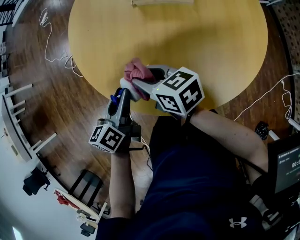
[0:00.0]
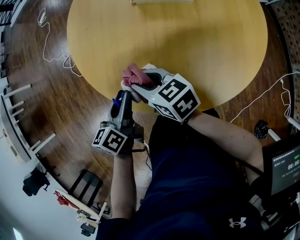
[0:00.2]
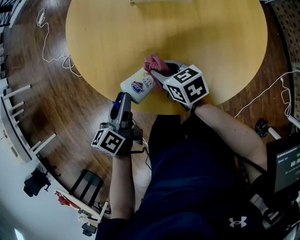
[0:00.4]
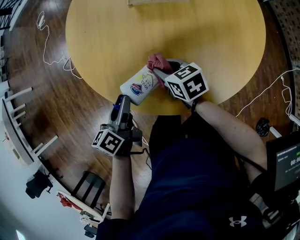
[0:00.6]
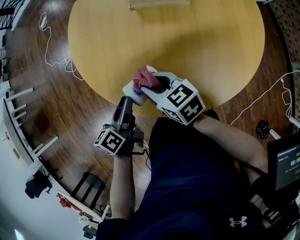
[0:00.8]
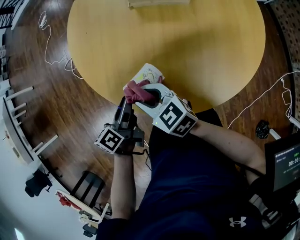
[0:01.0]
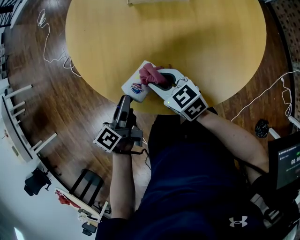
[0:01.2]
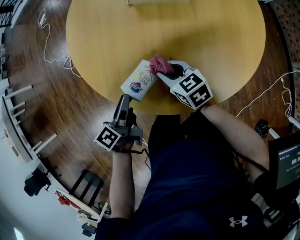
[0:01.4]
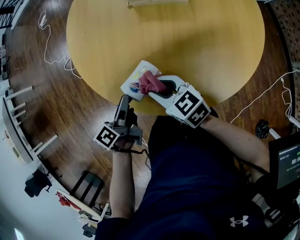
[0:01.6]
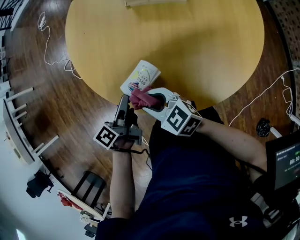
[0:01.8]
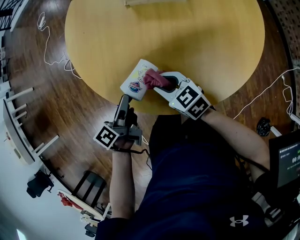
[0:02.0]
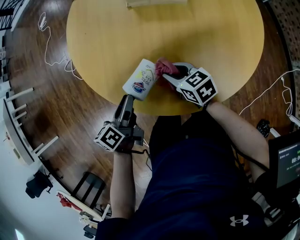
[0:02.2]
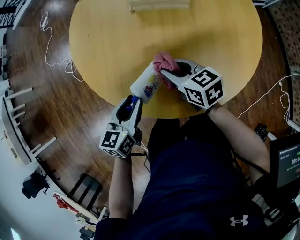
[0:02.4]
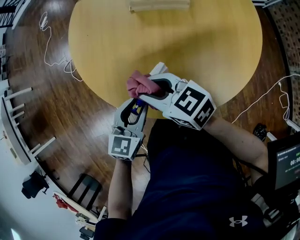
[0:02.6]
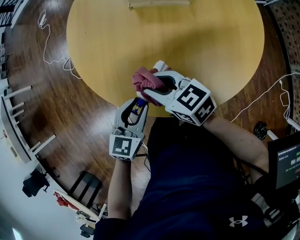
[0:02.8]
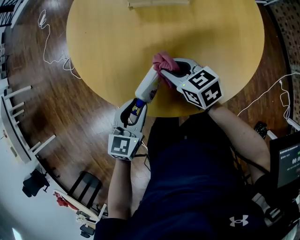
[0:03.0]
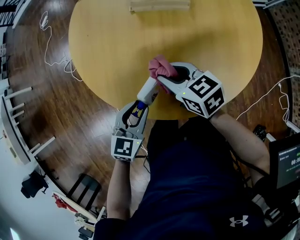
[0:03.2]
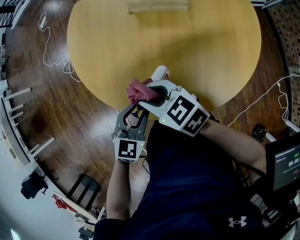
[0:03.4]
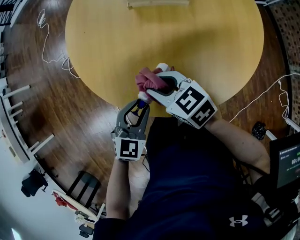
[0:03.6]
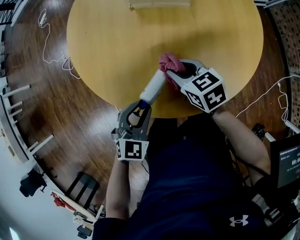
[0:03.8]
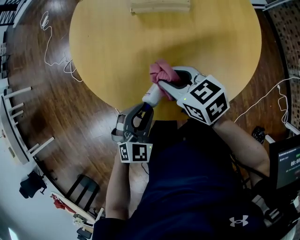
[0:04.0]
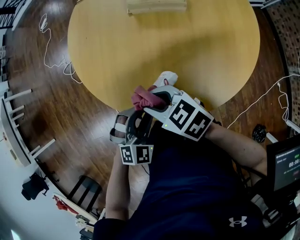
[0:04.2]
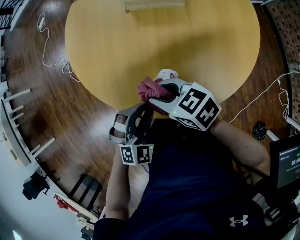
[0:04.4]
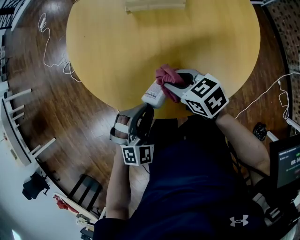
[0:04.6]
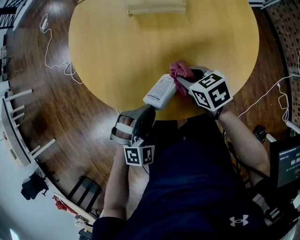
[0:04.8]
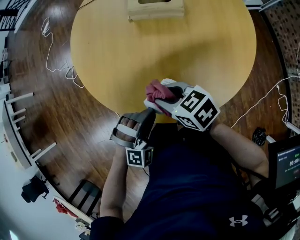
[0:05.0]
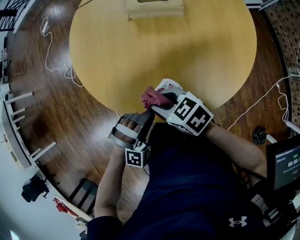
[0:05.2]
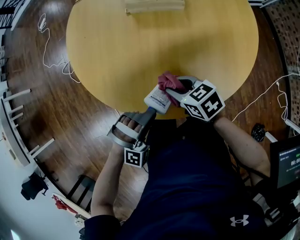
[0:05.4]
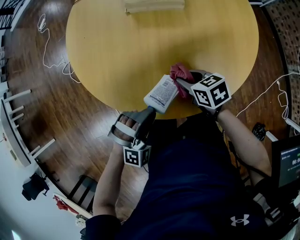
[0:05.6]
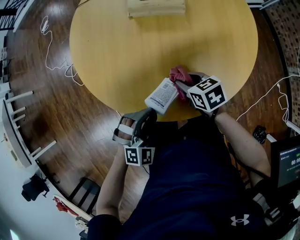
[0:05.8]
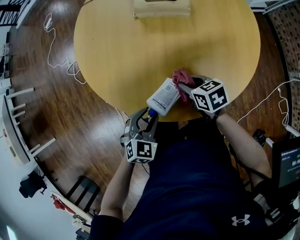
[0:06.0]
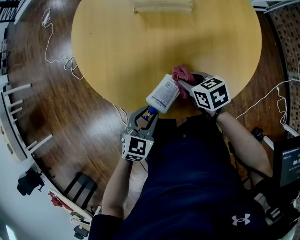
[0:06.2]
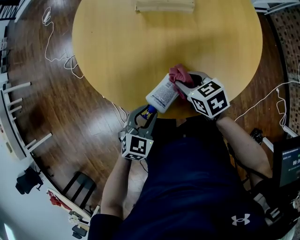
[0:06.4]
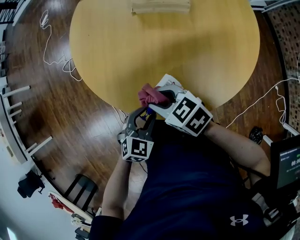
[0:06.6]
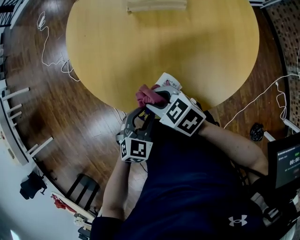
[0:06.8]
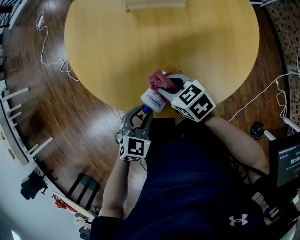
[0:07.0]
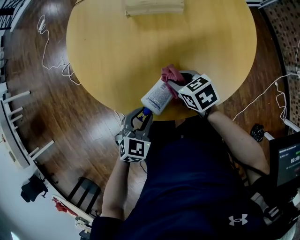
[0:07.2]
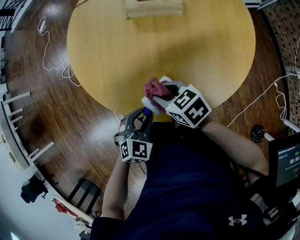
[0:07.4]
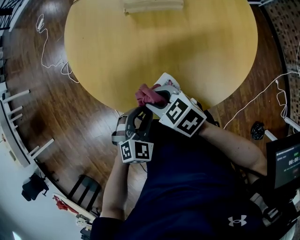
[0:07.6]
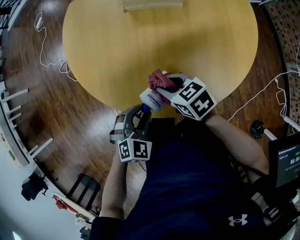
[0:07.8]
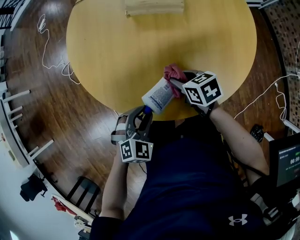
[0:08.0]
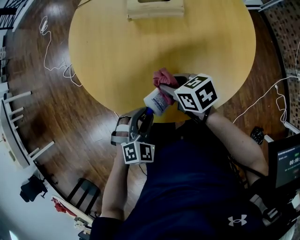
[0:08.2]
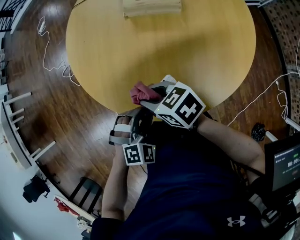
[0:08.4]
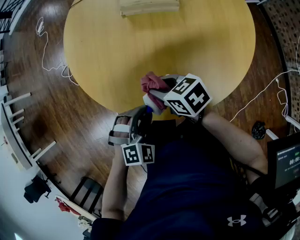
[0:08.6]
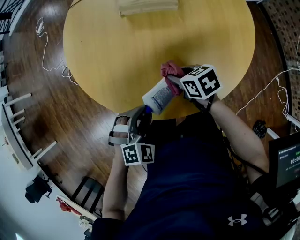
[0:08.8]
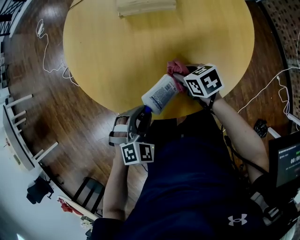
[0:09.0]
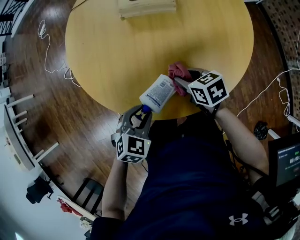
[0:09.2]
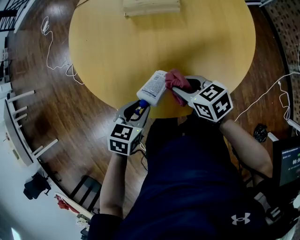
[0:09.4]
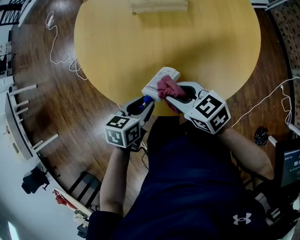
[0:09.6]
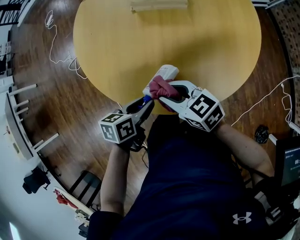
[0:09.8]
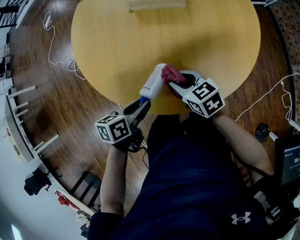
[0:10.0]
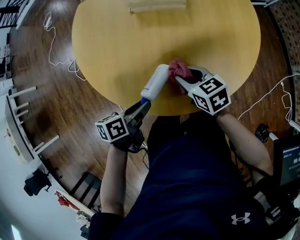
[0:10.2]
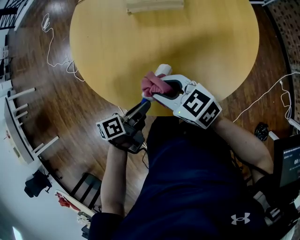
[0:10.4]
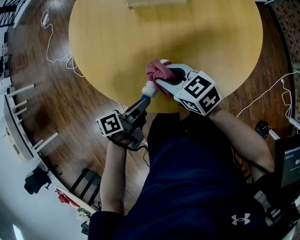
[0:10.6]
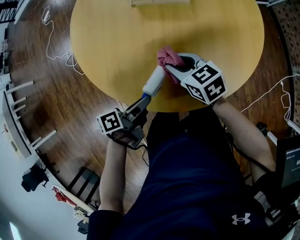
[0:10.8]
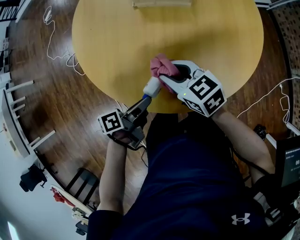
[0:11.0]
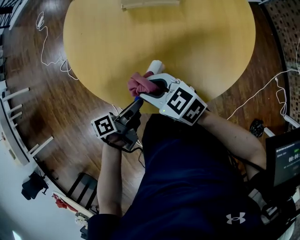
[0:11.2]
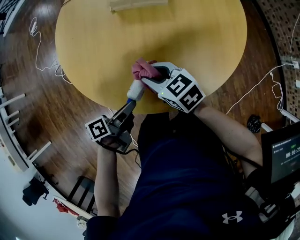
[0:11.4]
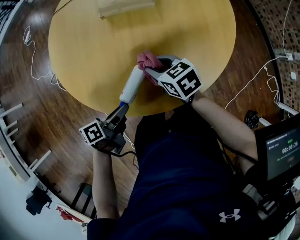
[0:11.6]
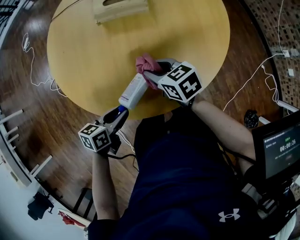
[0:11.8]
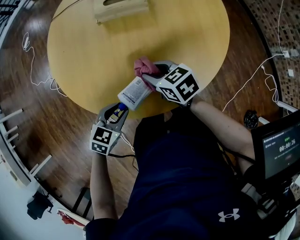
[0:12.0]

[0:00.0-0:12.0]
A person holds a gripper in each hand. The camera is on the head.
0:00.0 to 0:01.6: The left gripper moves about 5 cm, and rotates approximately 30 degrees; the right gripper swings left and right, approximately 10 cm each way, with 3 reversals.
0:01.6 to 0:03.0: The right gripper goes up and down, about 15 cm each way, reversing 2 times; the left gripper is displaced to the right by roughly 5 cm, and rolls clockwise, seen from behind, by roughly 70 degrees.
0:03.0 to 0:04.4: The left gripper rotates around the line of its fingers by roughly 50 degrees, clockwise from behind; the right gripper swings left and right, about 10 cm each way, with 2 reversals.
0:04.4 to 0:06.0: The left gripper swivels about 20 degrees. The right gripper moves left and right over roughly 10 cm, changing direction 2 times, and rotates roughly 20 degrees.
0:06.0 to 0:07.6: The right gripper moves left and right over some 15 cm, changing direction 2 times, and rotates roughly 20 degrees.
0:07.6 to 0:09.0: The right gripper goes left and right, about 15 cm each way, reversing 2 times, and turns by some 30 degrees.
0:09.0 to 0:10.4: The right gripper swings up and down, approximately 10 cm each way, with 2 reversals, and swivels approximately 30 degrees; the left gripper twists approximately 100 degrees counterclockwise, seen from behind.
0:10.4 to 0:12.0: The left gripper rolls clockwise, seen from behind, by about 70 degrees. Meanwhile the right gripper moves left and right over approximately 10 cm, changing direction 2 times.

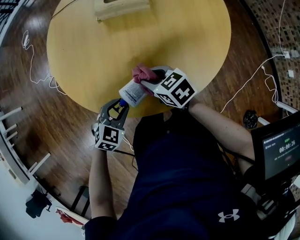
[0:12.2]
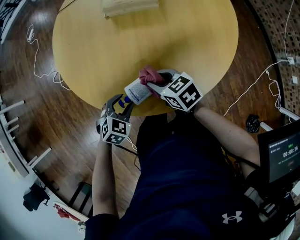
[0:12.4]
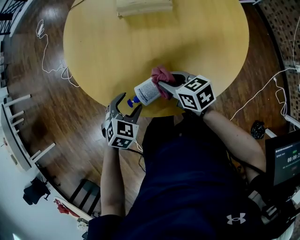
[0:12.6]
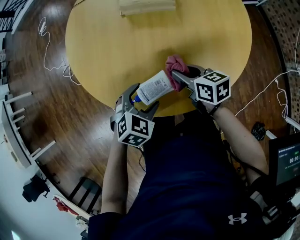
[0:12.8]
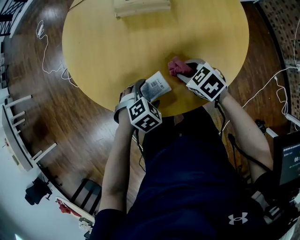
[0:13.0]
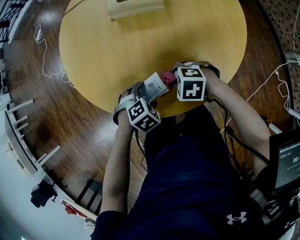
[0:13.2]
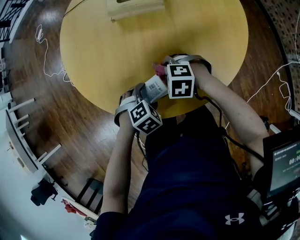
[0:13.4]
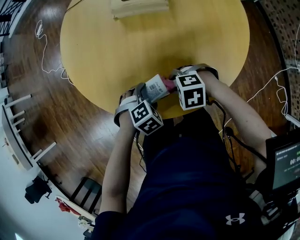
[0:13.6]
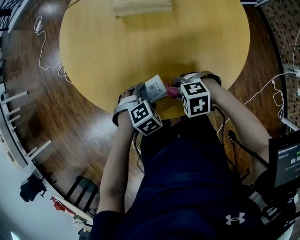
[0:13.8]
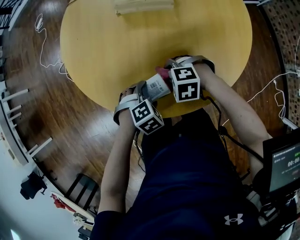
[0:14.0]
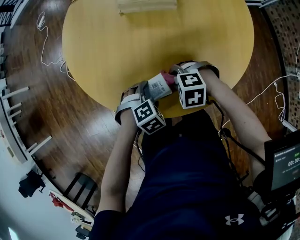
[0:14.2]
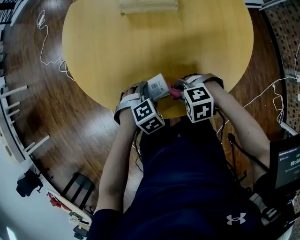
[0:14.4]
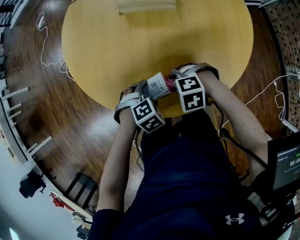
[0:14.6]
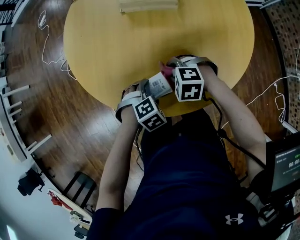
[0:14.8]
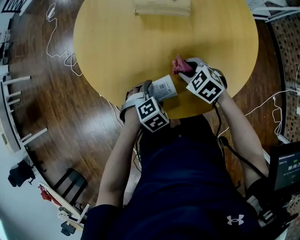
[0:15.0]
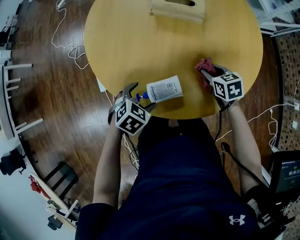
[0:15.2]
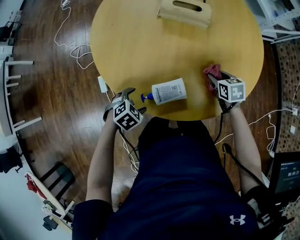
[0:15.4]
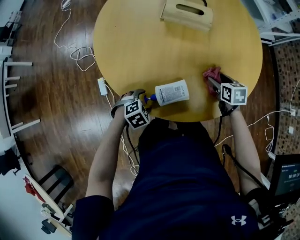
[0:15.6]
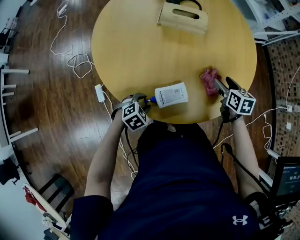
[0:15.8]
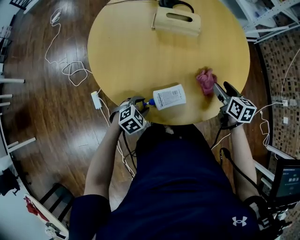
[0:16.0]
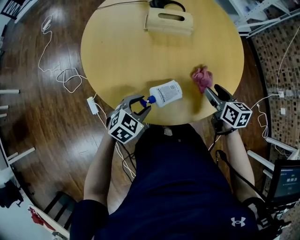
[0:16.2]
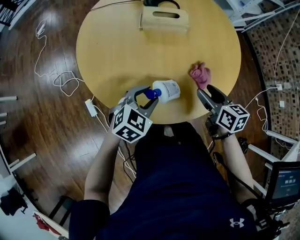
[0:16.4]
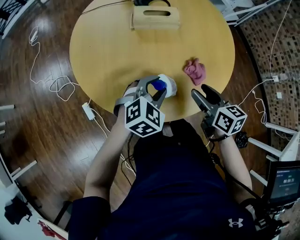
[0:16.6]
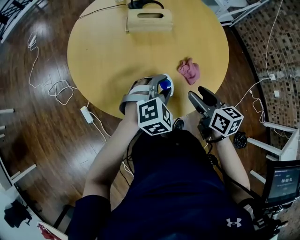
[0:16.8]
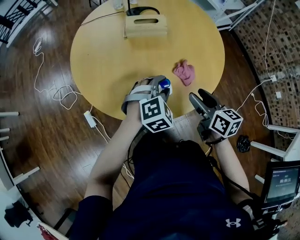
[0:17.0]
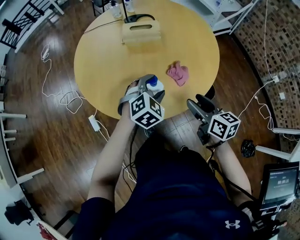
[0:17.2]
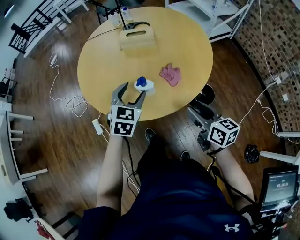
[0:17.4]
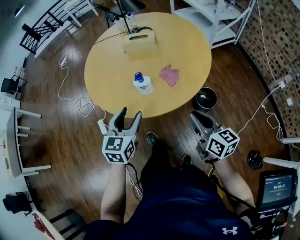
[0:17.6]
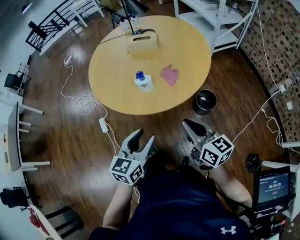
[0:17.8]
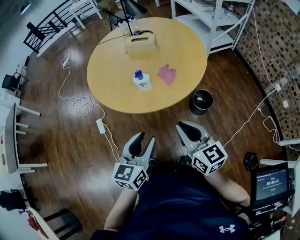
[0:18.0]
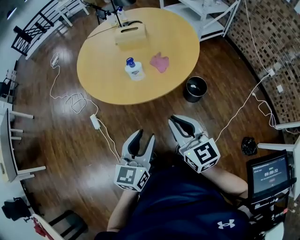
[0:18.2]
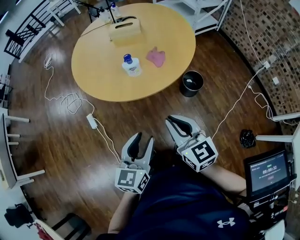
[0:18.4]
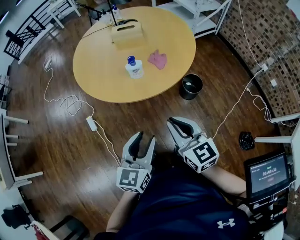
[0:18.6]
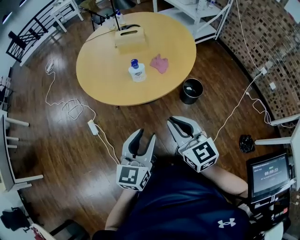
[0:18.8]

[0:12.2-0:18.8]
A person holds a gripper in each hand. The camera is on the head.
0:12.2 to 0:13.8: The left gripper ends up some 10 cm from where it was, rotates approximately 30 degrees, and opens its fingers. Meanwhile the right gripper ends up approximately 10 cm from where it was, and rotates around the line of its fingers by some 60 degrees, counterclockwise from behind.
0:13.8 to 0:15.4: The left gripper shifts by about 10 cm; the right gripper moves approximately 20 cm, and rolls clockwise, seen from behind, by about 60 degrees.
0:15.4 to 0:17.2: The left gripper goes some 25 cm to the right, upward and forward, and swivels roughly 40 degrees, while the right gripper is displaced upward and backward by roughly 25 cm, and tips its fingers upward by roughly 30 degrees.
0:17.2 to 0:18.8: The left gripper heads backward, covering about 30 cm, and tips its fingers upward by roughly 30 degrees. The right gripper heads backward and upward, covering about 25 cm, rotates approximately 30 degrees, and closes its fingers.

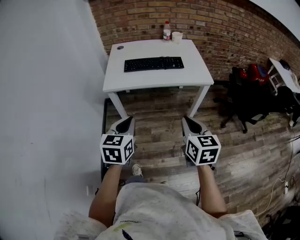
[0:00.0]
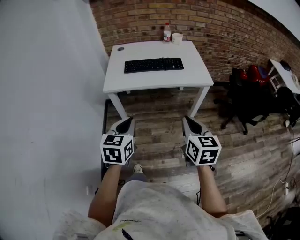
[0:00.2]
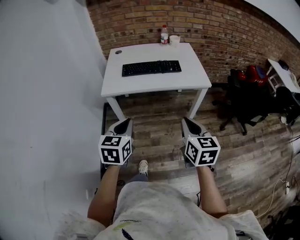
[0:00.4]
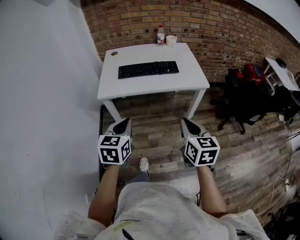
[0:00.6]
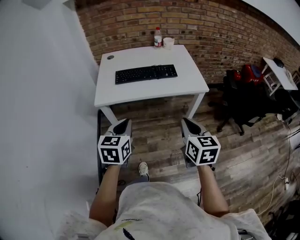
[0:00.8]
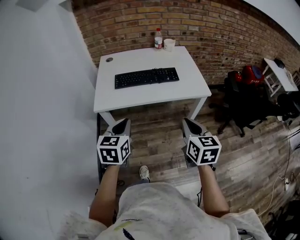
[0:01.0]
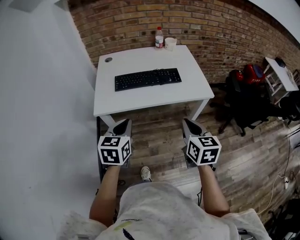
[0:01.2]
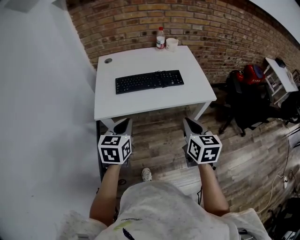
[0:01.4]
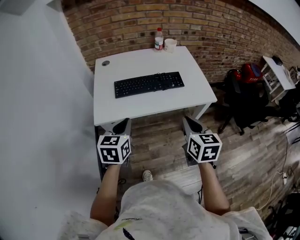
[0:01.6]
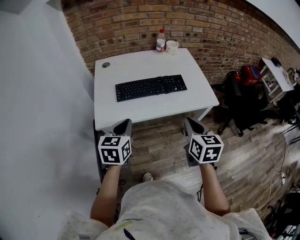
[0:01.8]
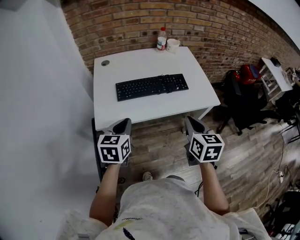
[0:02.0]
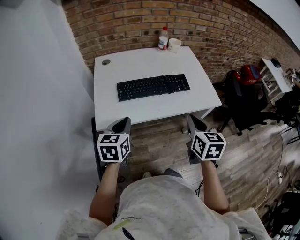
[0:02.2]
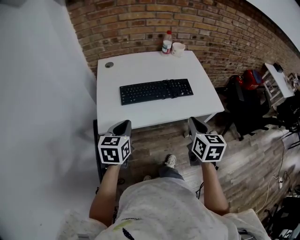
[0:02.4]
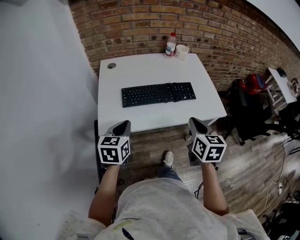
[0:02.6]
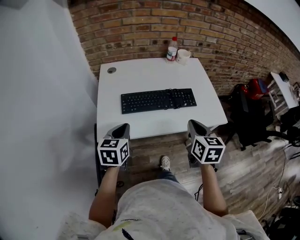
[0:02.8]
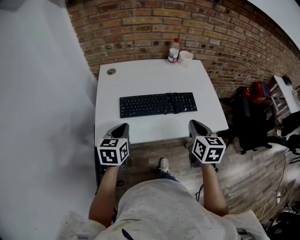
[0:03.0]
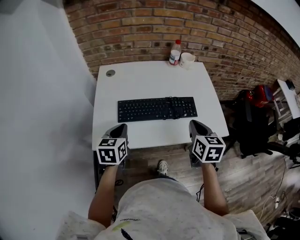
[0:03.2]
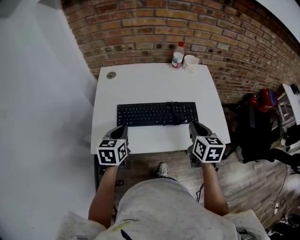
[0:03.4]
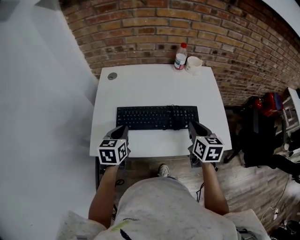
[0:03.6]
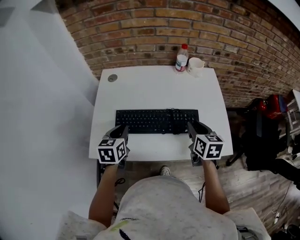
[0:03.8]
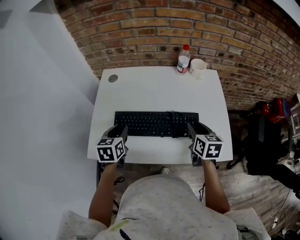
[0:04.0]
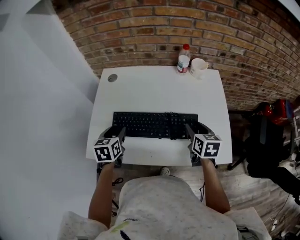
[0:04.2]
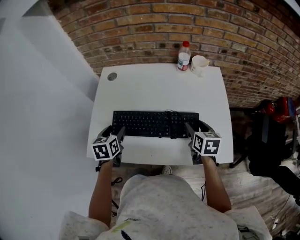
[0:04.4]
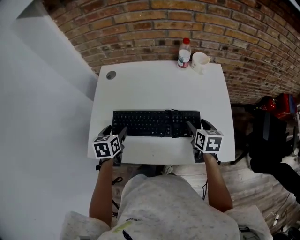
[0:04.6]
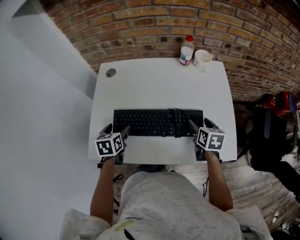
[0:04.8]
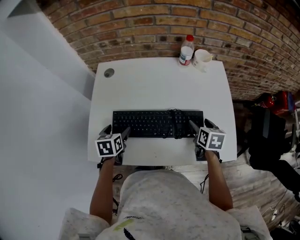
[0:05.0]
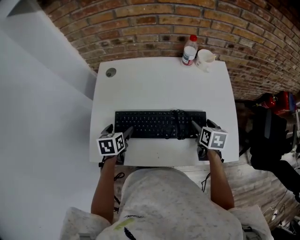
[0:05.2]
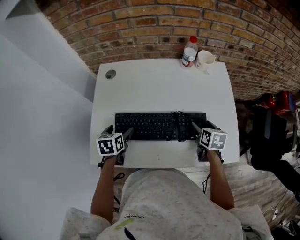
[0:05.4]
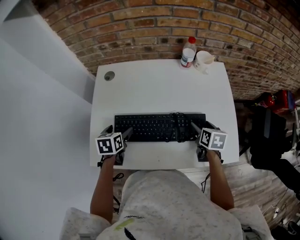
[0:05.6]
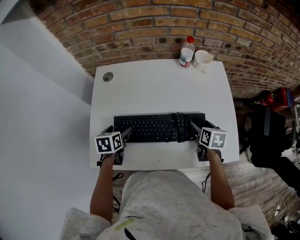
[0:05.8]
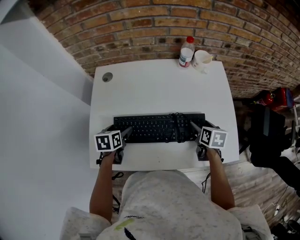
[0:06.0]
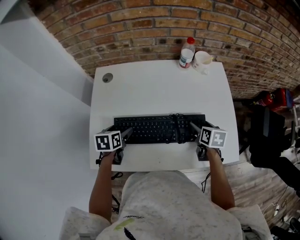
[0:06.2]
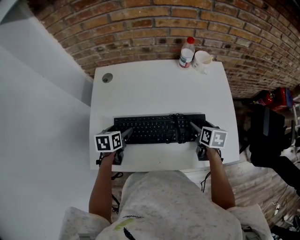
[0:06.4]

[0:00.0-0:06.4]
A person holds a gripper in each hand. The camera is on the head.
0:00.0 to 0:01.6: Both grippers move forward, roughly 25 cm.
0:01.6 to 0:03.2: Both grippers move forward, approximately 20 cm.
0:03.2 to 0:04.8: The left gripper moves forward and downward, approximately 15 cm, rotates about 20 degrees, and opens up; the right gripper is displaced forward, downward and to the right by approximately 25 cm, and opens.
0:04.8 to 0:06.4: The left gripper shifts by approximately 5 cm.
